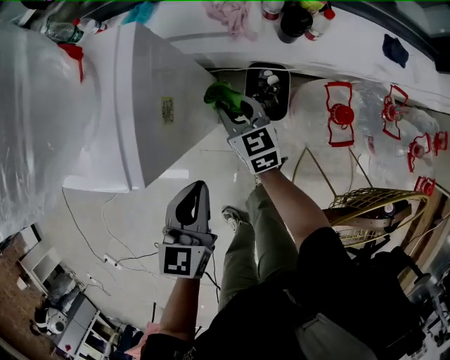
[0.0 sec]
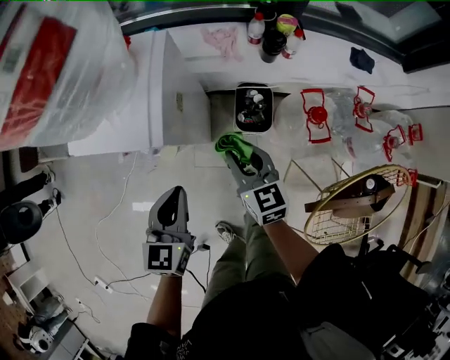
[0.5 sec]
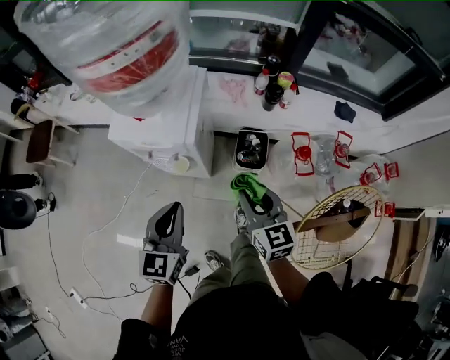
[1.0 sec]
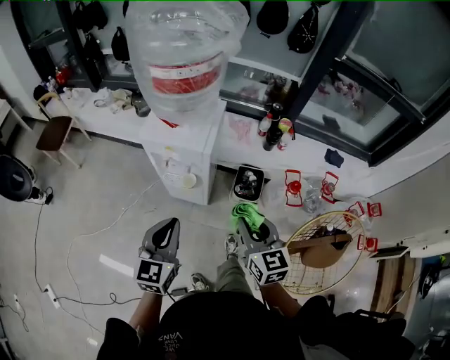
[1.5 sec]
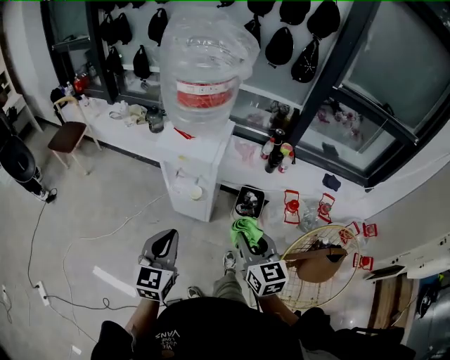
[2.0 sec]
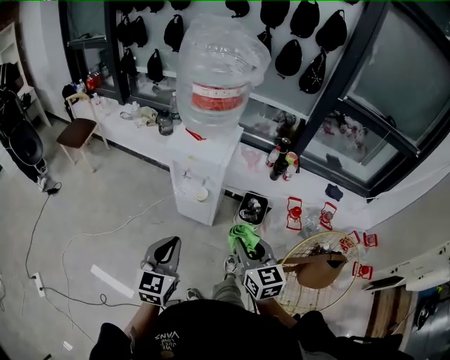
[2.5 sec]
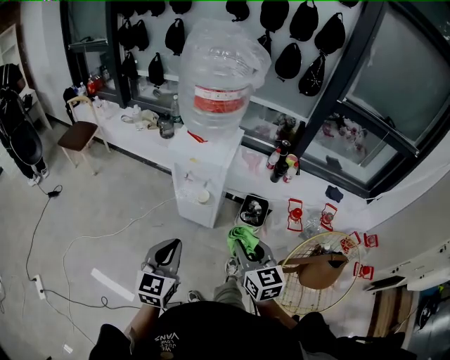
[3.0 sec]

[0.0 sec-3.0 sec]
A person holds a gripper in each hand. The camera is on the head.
0.0 sec to 1.5 sec: The right gripper heads backward and upward, covering approximately 50 cm. Meanwhile the left gripper goes about 35 cm backward, upward and to the left, and turns by about 20 degrees.
1.5 sec to 3.0 sec: The left gripper travels backward by some 10 cm; the right gripper heads backward and to the left, covering some 10 cm.

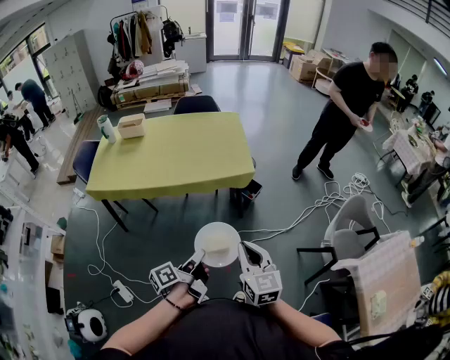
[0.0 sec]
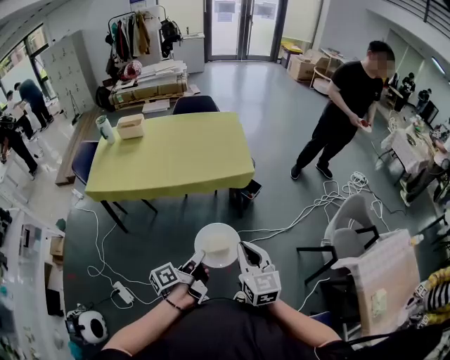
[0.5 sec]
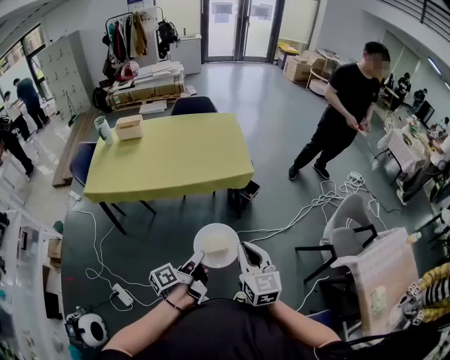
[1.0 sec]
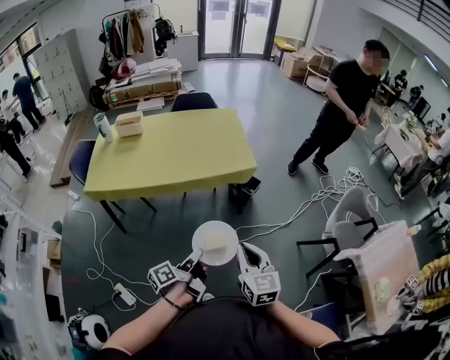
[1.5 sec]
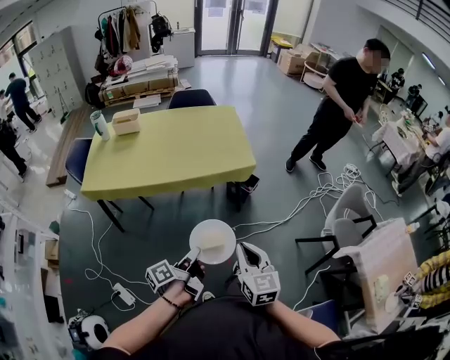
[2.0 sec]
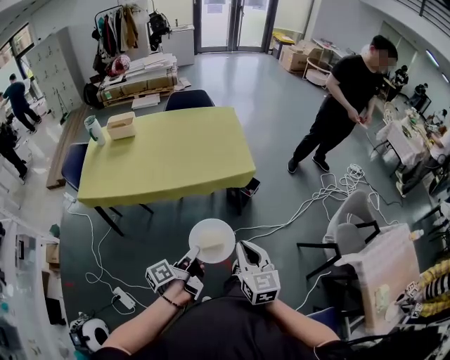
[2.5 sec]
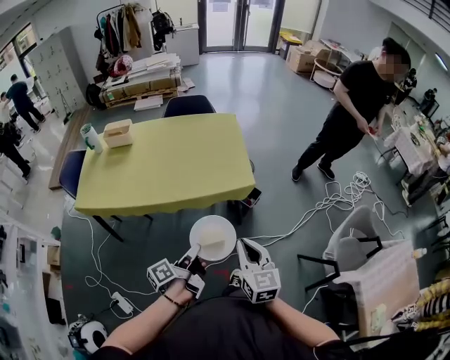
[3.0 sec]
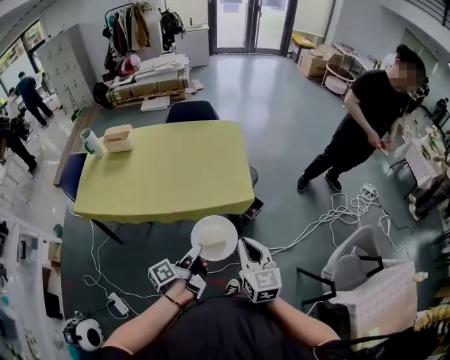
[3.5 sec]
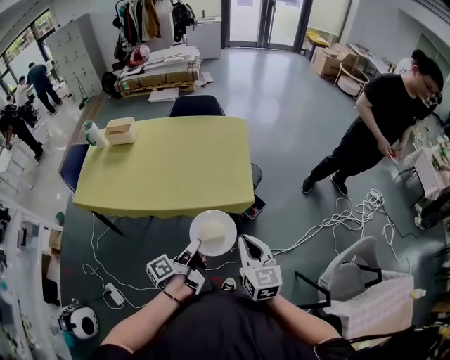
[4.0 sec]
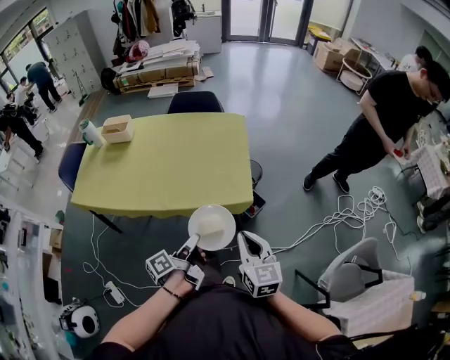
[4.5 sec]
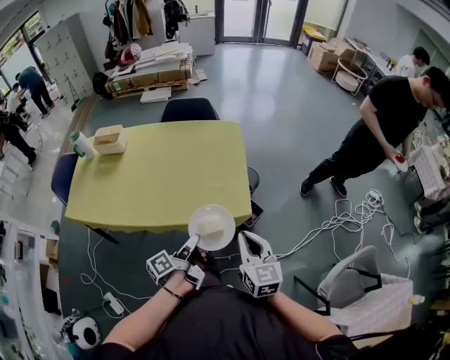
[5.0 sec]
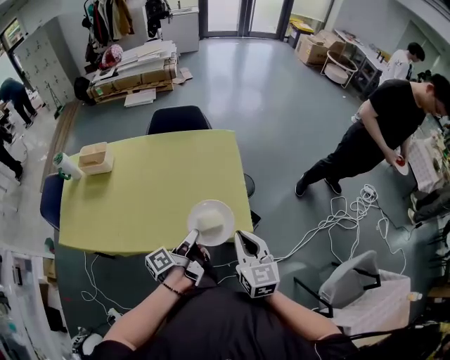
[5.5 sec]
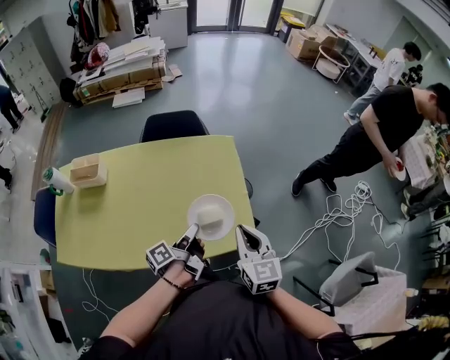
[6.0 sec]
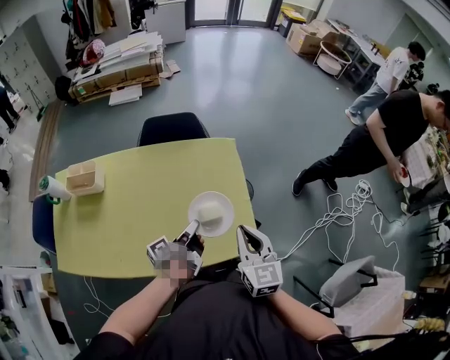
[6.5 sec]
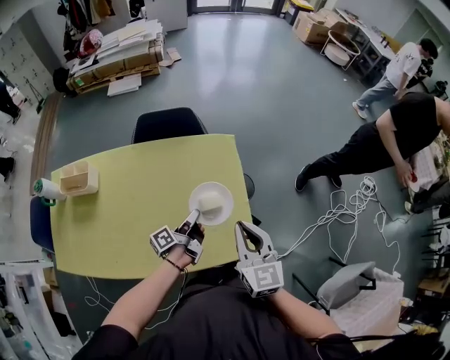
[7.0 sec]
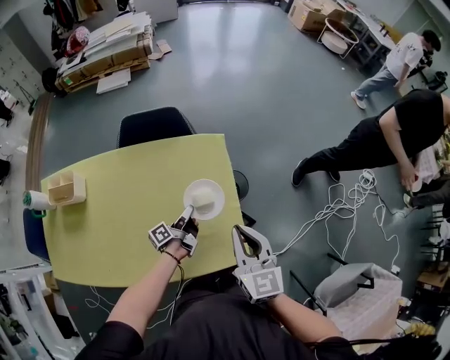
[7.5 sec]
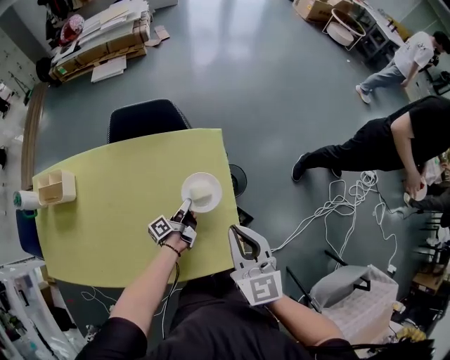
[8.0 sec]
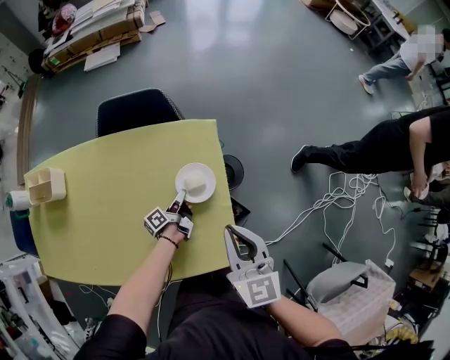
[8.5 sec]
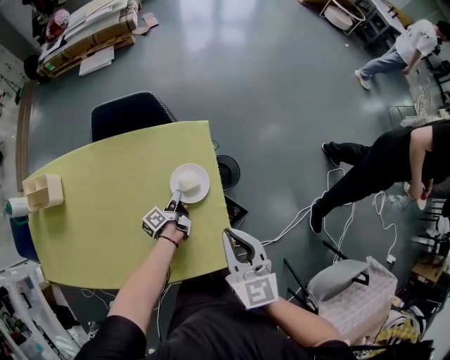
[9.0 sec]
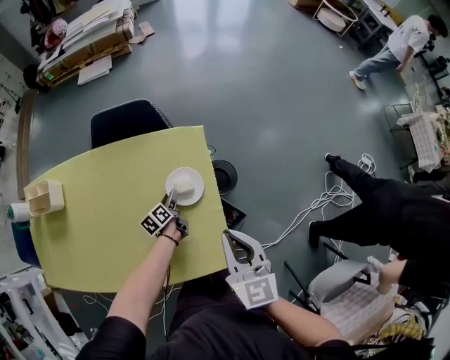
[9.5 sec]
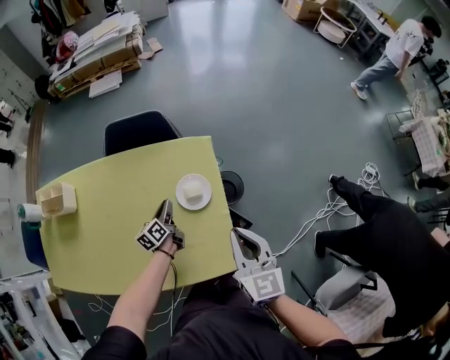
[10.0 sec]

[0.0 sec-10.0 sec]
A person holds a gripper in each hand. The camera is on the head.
0.0 sec to 2.0 sec: The right gripper changes place by approximately 10 cm.
2.0 sec to 4.0 sec: The right gripper shifts by roughly 35 cm.
4.0 sec to 6.0 sec: The right gripper changes place by some 30 cm.
6.0 sec to 8.0 sec: The right gripper ends up roughly 20 cm from where it was.
8.0 sec to 10.0 sec: The right gripper changes place by some 5 cm.

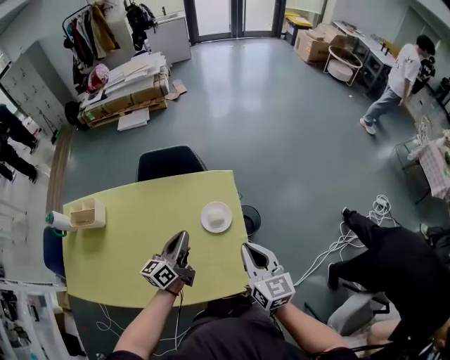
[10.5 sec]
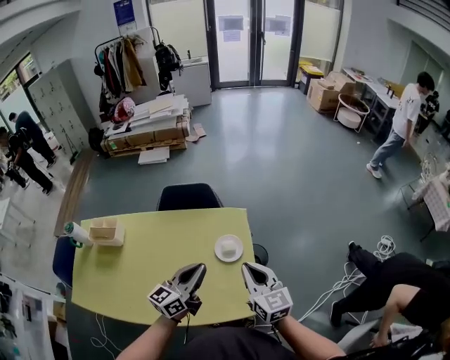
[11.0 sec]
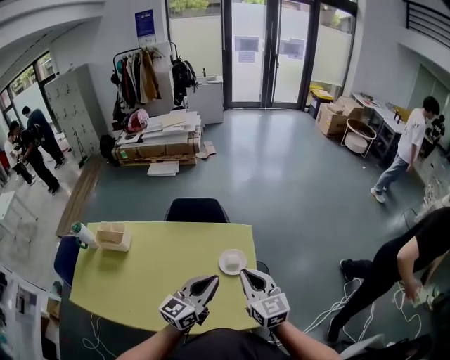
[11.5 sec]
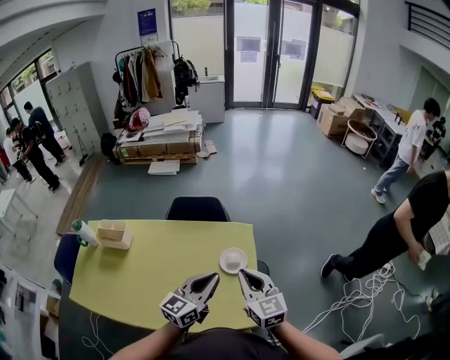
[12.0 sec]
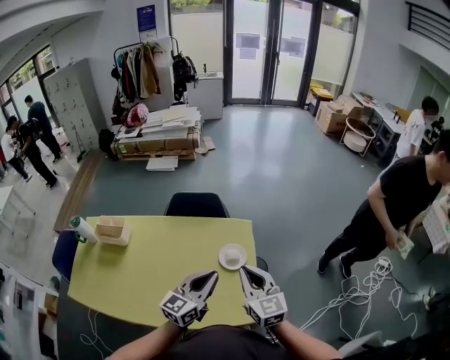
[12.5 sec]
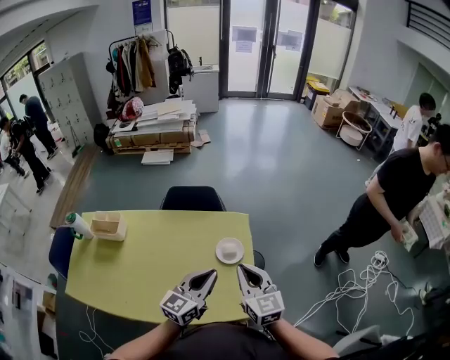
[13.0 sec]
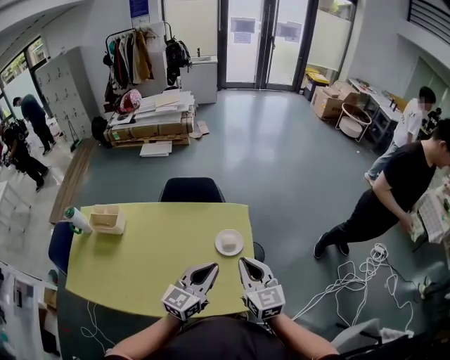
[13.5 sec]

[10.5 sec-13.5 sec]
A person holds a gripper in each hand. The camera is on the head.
10.5 sec to 12.0 sec: The right gripper is displaced upward by some 10 cm.

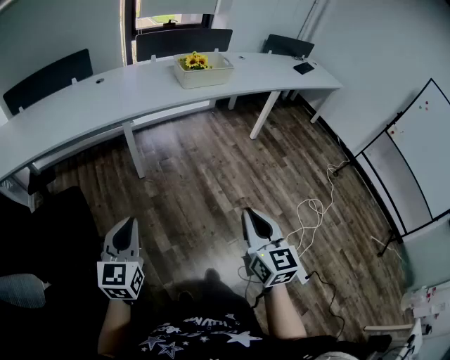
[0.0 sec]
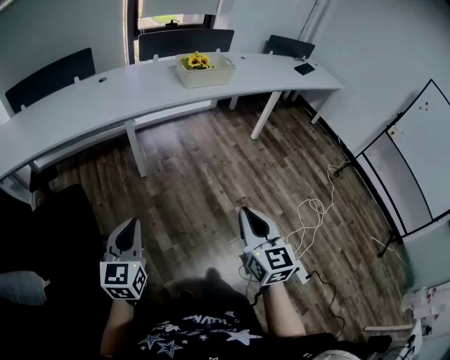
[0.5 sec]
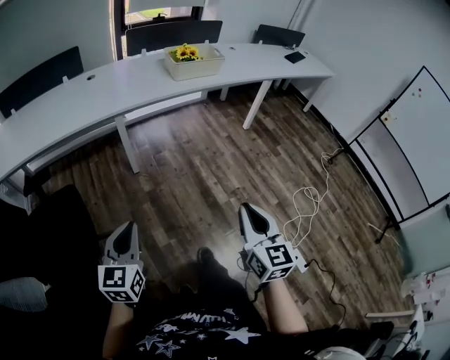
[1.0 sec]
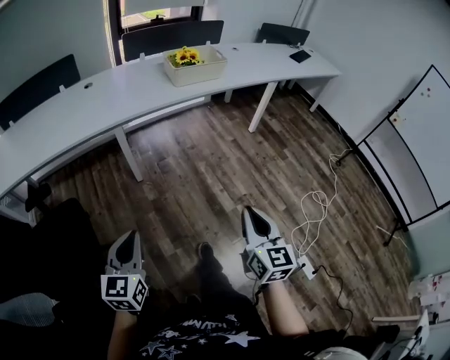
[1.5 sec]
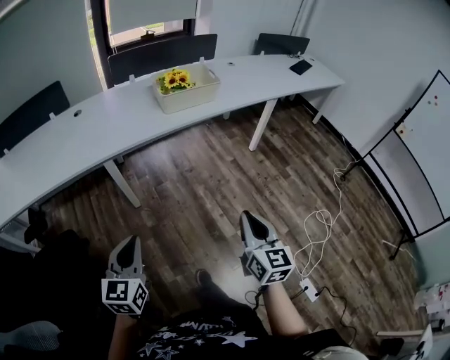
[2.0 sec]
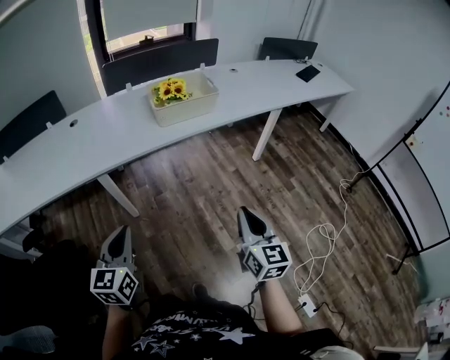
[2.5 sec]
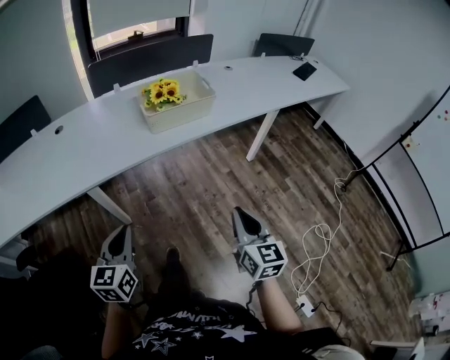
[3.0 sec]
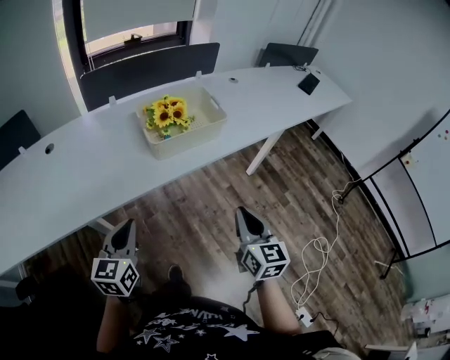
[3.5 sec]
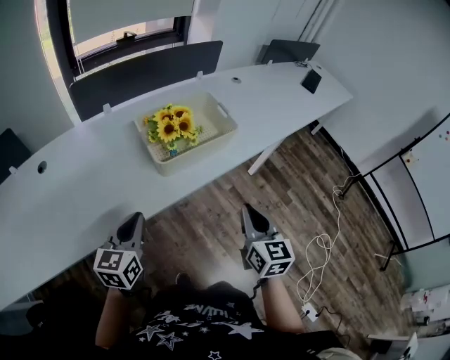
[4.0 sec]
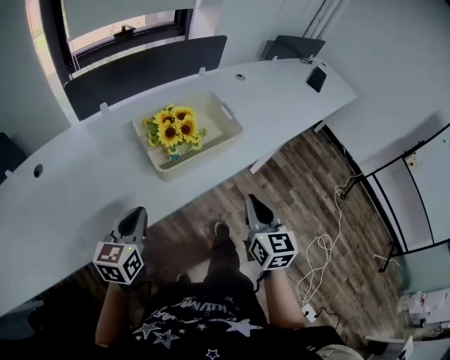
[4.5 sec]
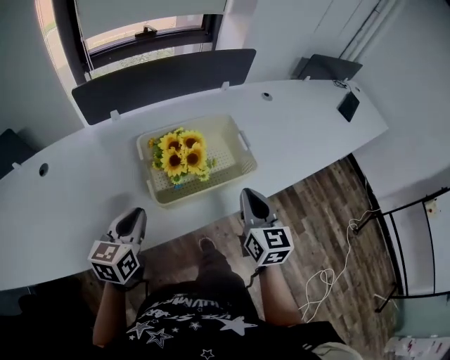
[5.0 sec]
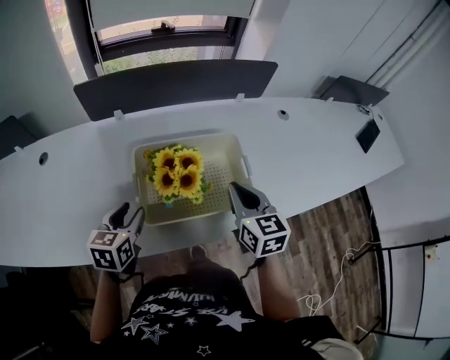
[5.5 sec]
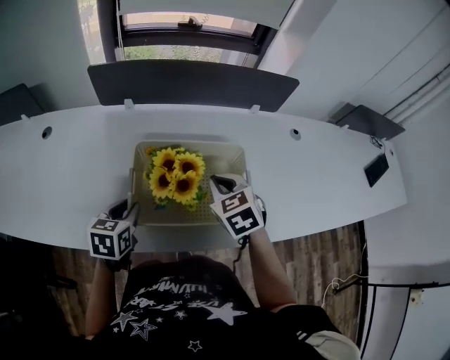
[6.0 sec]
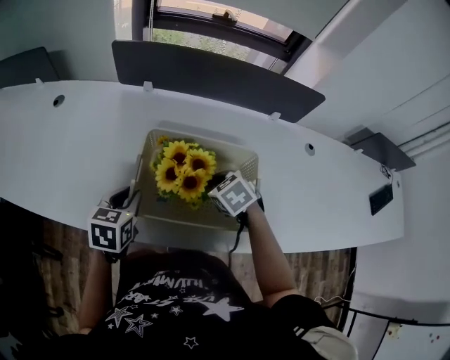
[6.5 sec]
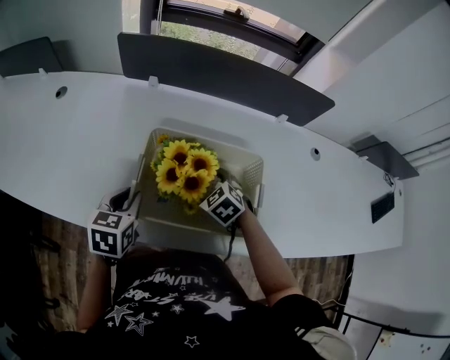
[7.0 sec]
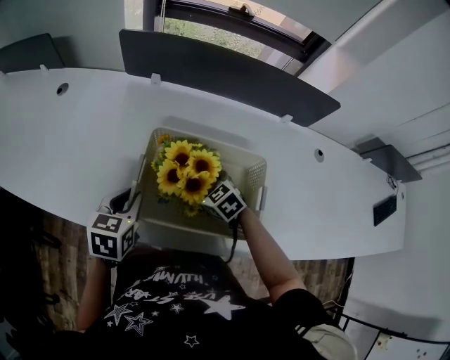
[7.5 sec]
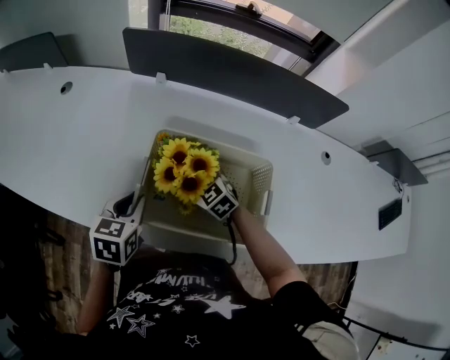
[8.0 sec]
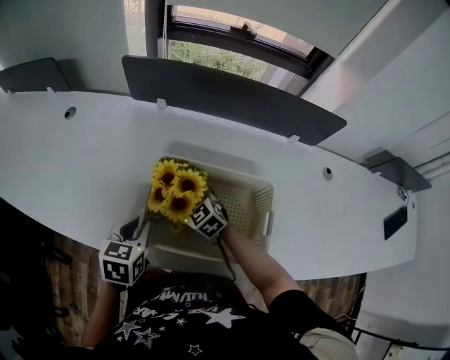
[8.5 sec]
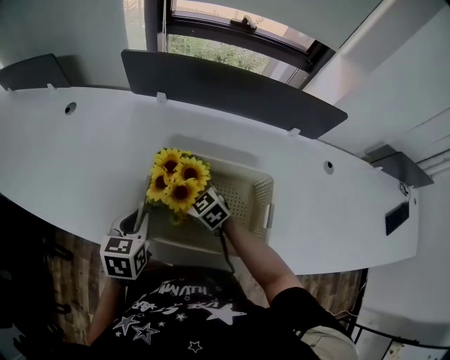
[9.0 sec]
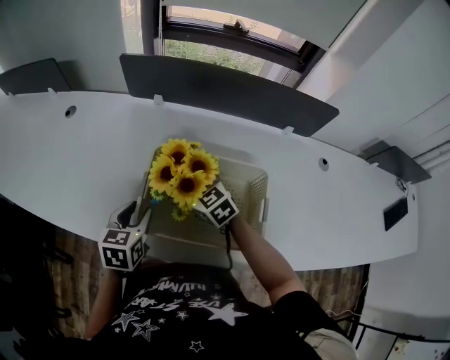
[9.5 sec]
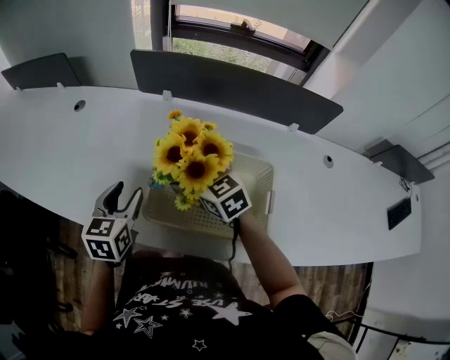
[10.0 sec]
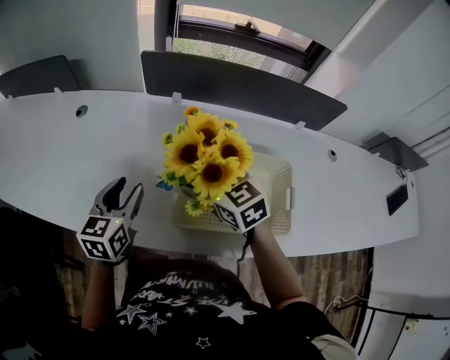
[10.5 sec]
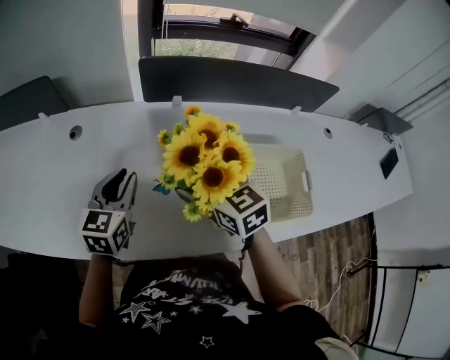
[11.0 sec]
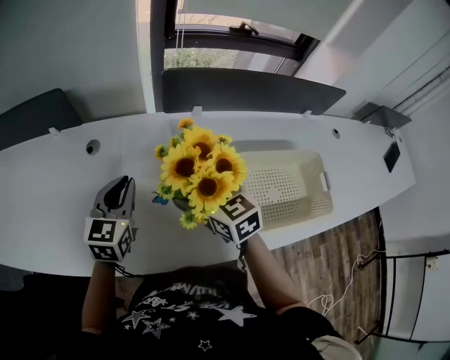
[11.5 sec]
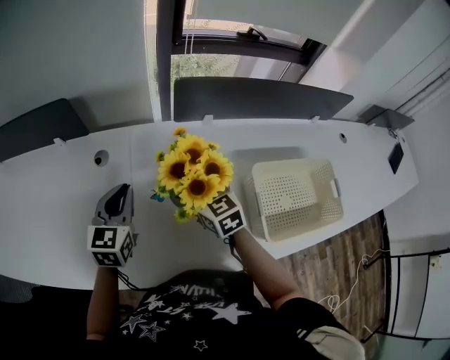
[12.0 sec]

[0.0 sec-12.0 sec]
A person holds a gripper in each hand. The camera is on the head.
0.0 sec to 2.0 sec: The right gripper moves forward, about 20 cm; the left gripper travels forward and to the right by about 20 cm.
2.0 sec to 4.0 sec: The two grippers travel together, forward, some 50 cm.
4.0 sec to 6.0 sec: The left gripper shifts by some 25 cm, swivels about 40 degrees, and opens; the right gripper ends up roughly 40 cm from where it was, and rotates about 60 degrees.
6.0 sec to 8.0 sec: The right gripper shifts some 15 cm downward, rotates some 40 degrees, and opens up.
8.0 sec to 10.0 sec: The right gripper goes some 15 cm upward; the left gripper travels upward by approximately 5 cm, and opens up.
10.0 sec to 12.0 sec: Both grippers travel together to the left and forward, some 30 cm. The right gripper changes its angle by roughly 30 degrees. The left gripper changes its angle by roughly 20 degrees, and closes up.
